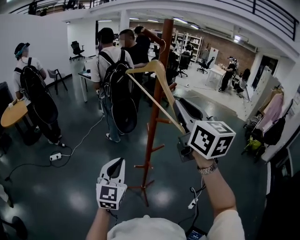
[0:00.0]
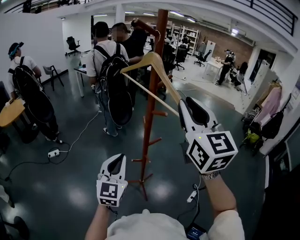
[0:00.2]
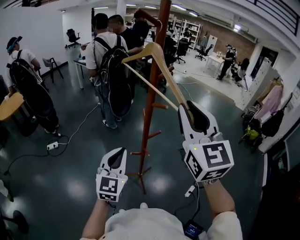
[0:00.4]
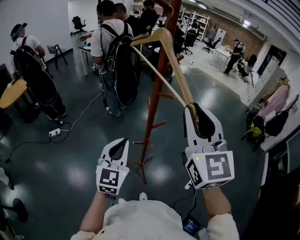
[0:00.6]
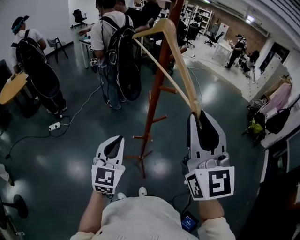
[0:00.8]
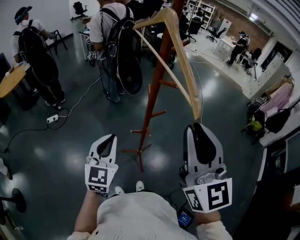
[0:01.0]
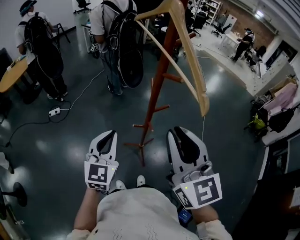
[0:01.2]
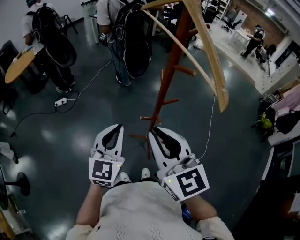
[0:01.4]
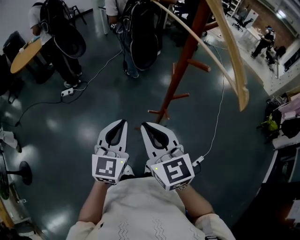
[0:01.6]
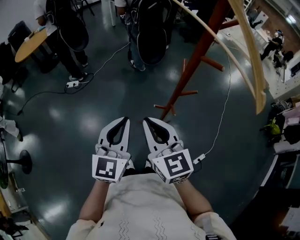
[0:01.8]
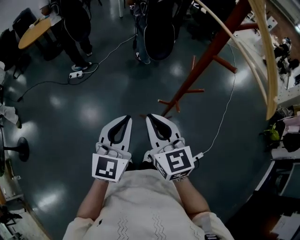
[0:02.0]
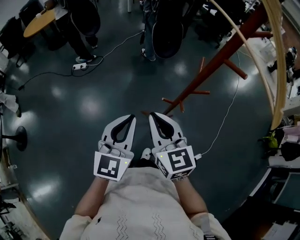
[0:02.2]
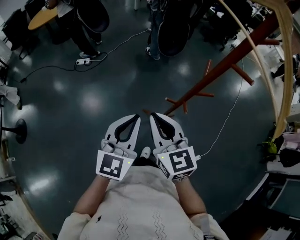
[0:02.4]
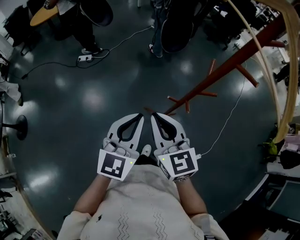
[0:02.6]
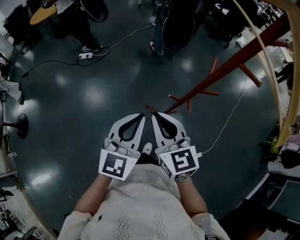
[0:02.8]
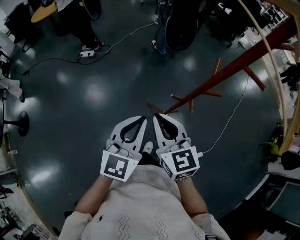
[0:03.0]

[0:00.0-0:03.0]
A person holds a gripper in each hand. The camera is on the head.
0:00.0 to 0:01.6: The right gripper travels downward and to the left by about 30 cm, and changes its angle by about 30 degrees; the left gripper travels downward by about 10 cm.
0:01.6 to 0:03.0: The right gripper is displaced downward by about 10 cm.

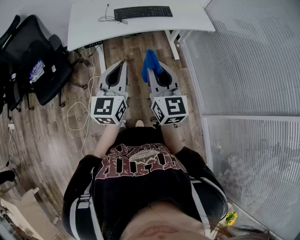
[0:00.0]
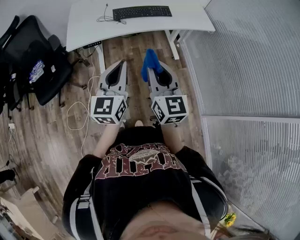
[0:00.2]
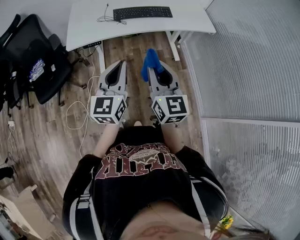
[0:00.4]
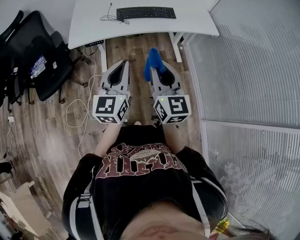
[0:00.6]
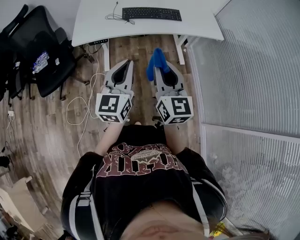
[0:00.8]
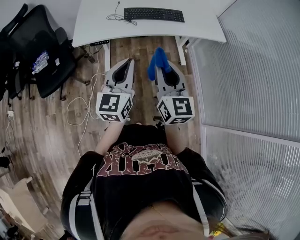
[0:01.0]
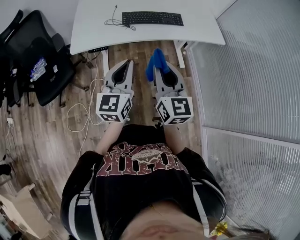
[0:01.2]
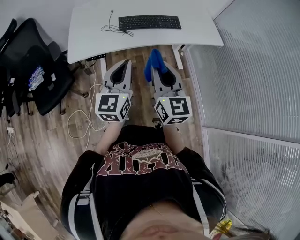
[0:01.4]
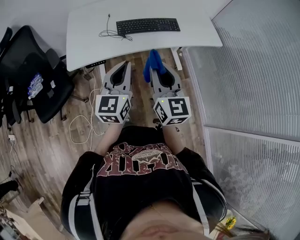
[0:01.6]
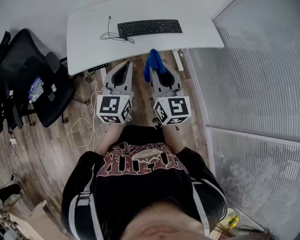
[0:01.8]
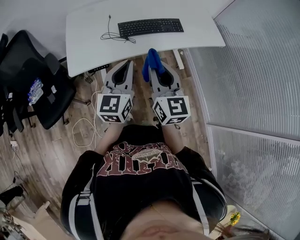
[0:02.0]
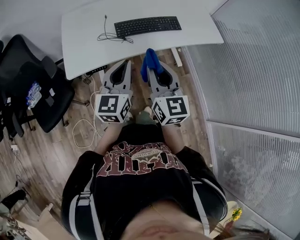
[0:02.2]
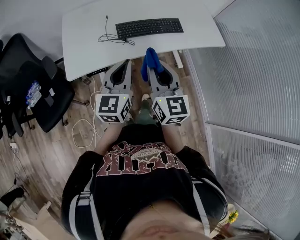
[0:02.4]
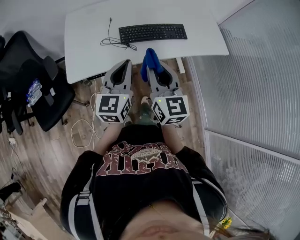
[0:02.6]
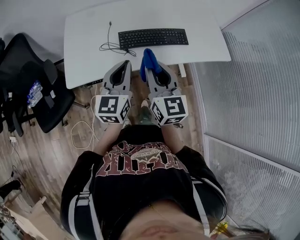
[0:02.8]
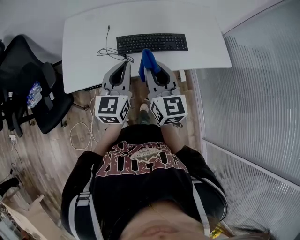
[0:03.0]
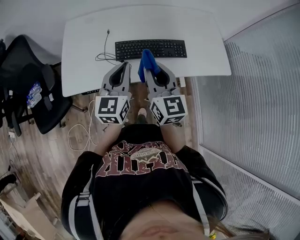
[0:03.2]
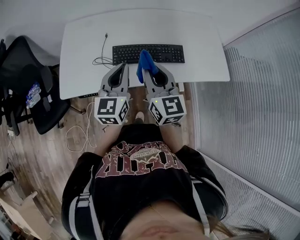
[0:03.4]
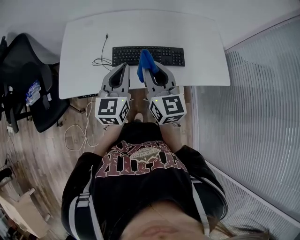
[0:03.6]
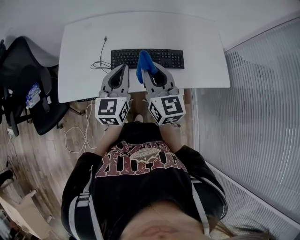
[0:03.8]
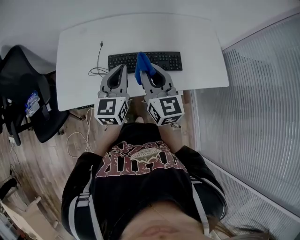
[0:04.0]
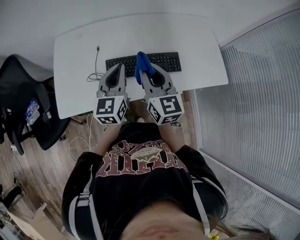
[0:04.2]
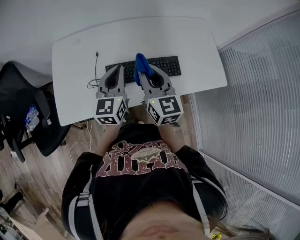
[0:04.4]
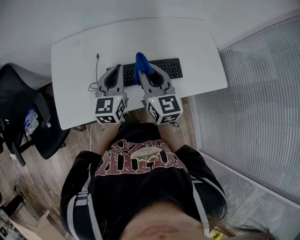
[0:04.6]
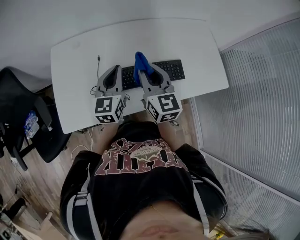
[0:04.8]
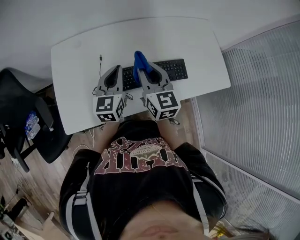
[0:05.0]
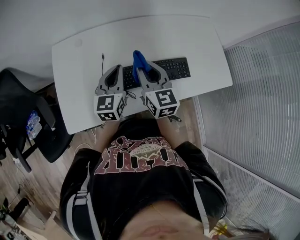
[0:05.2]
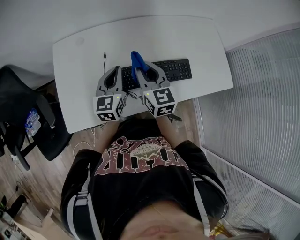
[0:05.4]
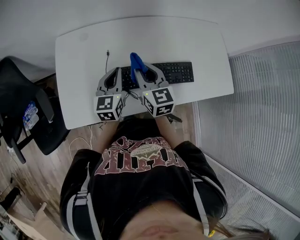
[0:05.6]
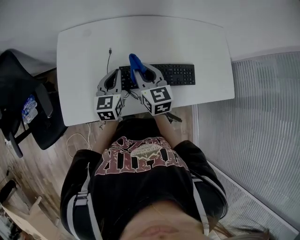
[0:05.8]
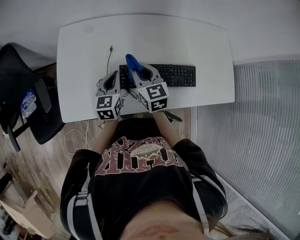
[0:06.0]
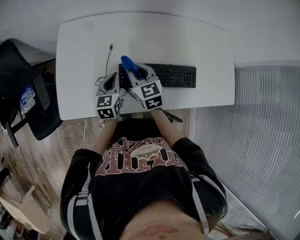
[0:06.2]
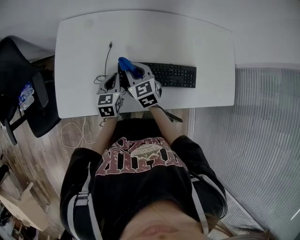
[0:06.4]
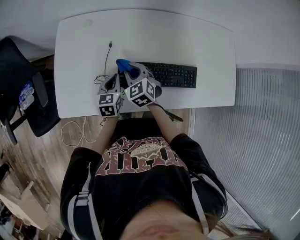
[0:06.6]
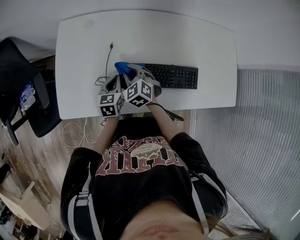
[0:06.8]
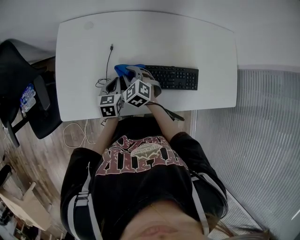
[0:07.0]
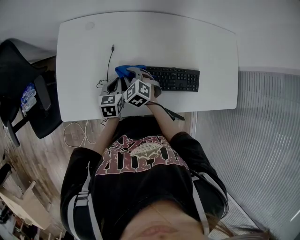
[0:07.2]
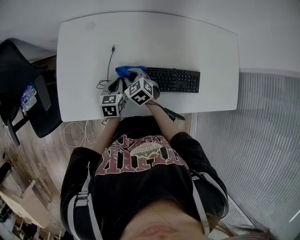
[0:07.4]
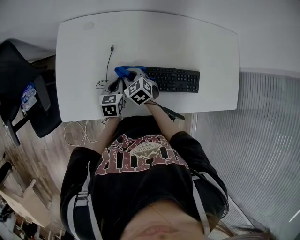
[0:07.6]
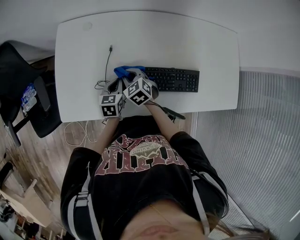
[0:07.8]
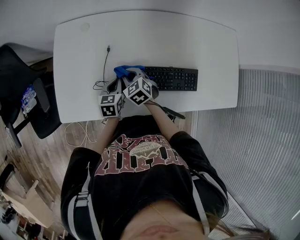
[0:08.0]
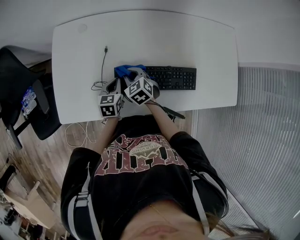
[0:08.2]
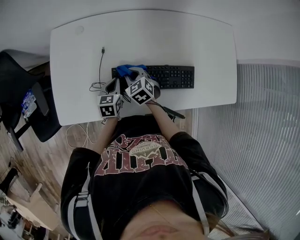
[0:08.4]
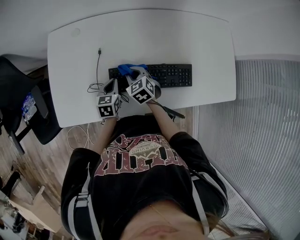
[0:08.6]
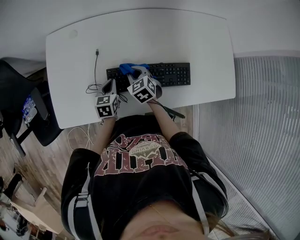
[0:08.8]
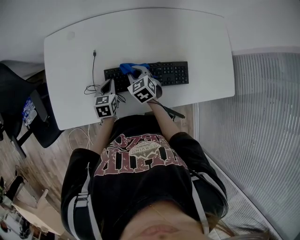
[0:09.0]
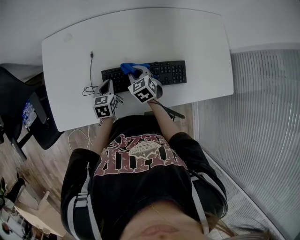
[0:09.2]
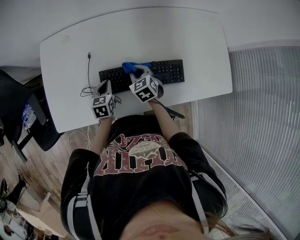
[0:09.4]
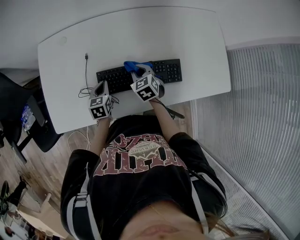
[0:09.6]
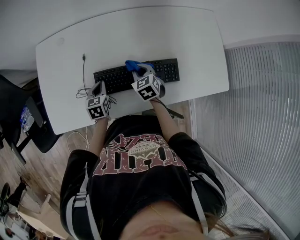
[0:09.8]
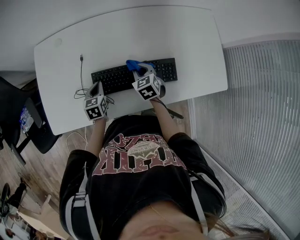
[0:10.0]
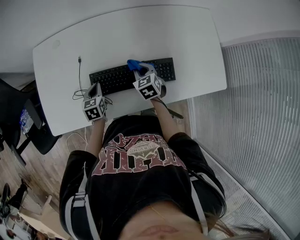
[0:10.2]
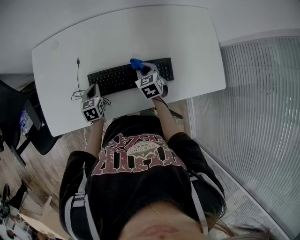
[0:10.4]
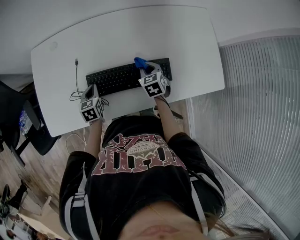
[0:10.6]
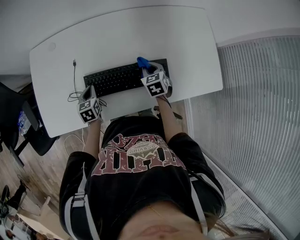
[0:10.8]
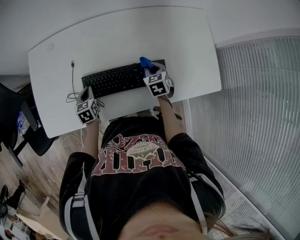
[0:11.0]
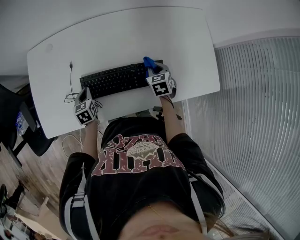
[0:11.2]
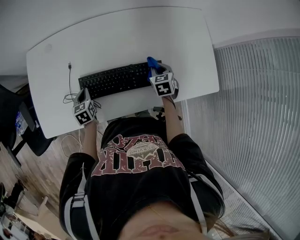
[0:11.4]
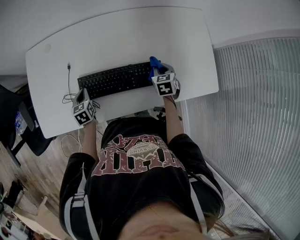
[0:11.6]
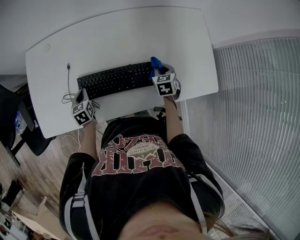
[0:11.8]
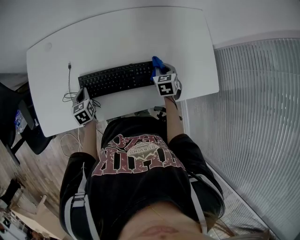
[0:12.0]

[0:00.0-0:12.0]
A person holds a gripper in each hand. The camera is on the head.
0:00.0 to 0:01.6: Both grippers move forward, roughly 15 cm.
0:01.6 to 0:03.0: The grippers both shift forward by some 20 cm.
0:03.0 to 0:04.4: Both grippers travel together forward, approximately 15 cm.
0:04.4 to 0:06.0: Both grippers travel together downward, to the left and forward, about 20 cm. The right gripper changes its angle by roughly 20 degrees.
0:06.0 to 0:07.6: Both grippers travel together downward, some 15 cm. The right gripper turns by some 30 degrees.
0:07.6 to 0:09.0: The right gripper moves to the right, about 10 cm.
0:09.0 to 0:10.4: The right gripper travels to the right by some 15 cm.
0:10.4 to 0:12.0: The right gripper heads to the right, covering roughly 15 cm.

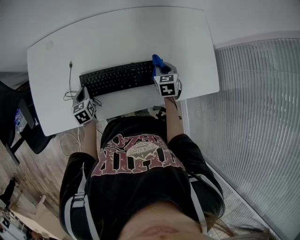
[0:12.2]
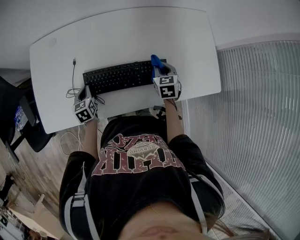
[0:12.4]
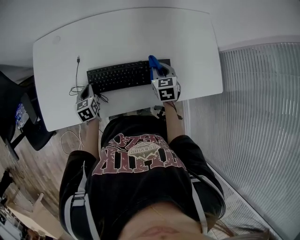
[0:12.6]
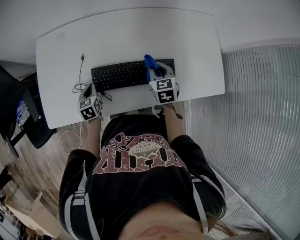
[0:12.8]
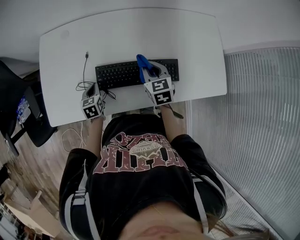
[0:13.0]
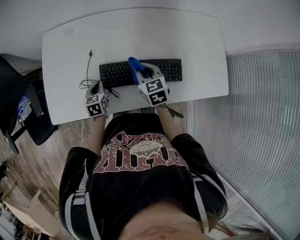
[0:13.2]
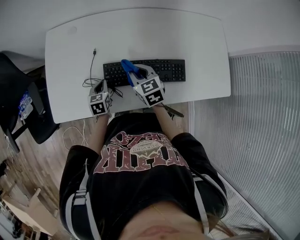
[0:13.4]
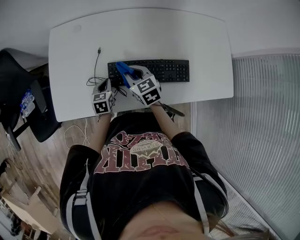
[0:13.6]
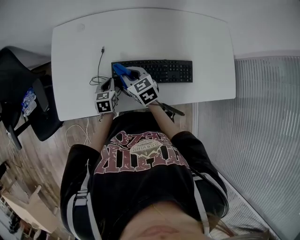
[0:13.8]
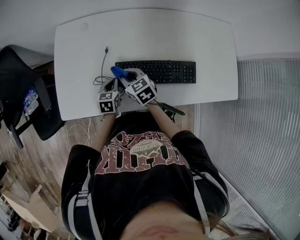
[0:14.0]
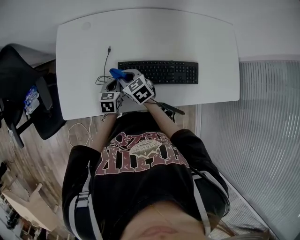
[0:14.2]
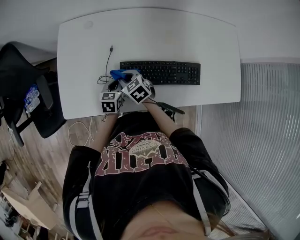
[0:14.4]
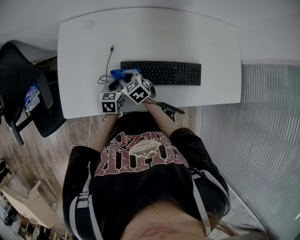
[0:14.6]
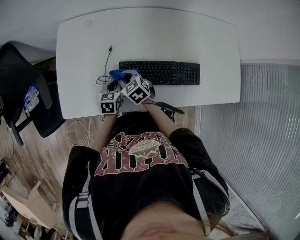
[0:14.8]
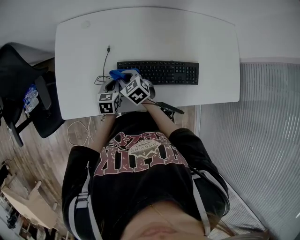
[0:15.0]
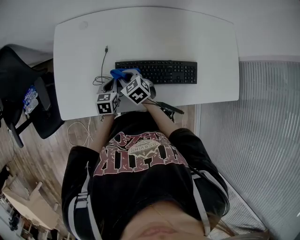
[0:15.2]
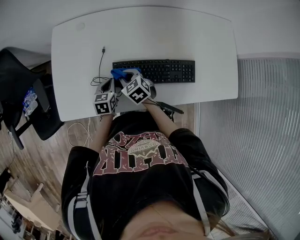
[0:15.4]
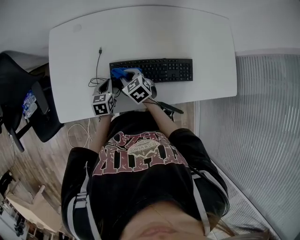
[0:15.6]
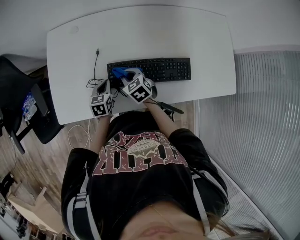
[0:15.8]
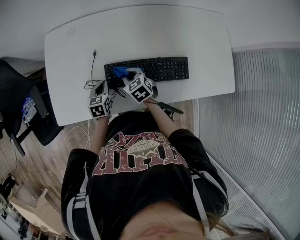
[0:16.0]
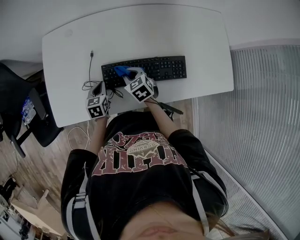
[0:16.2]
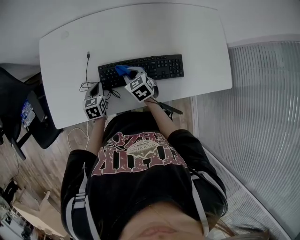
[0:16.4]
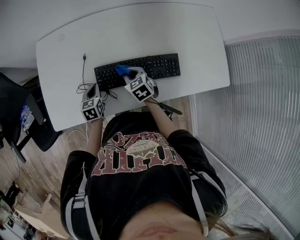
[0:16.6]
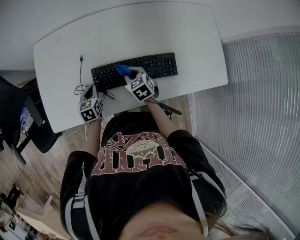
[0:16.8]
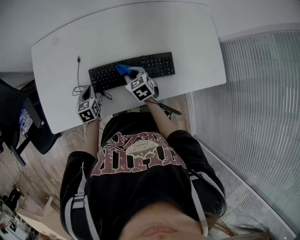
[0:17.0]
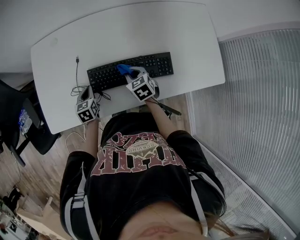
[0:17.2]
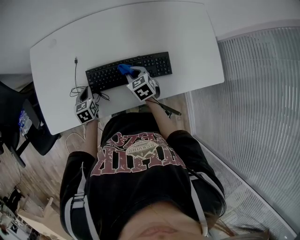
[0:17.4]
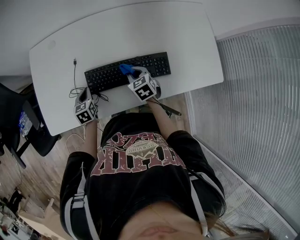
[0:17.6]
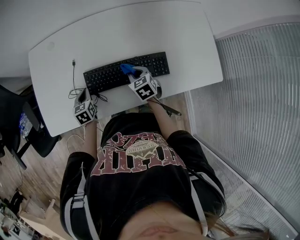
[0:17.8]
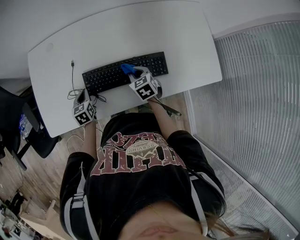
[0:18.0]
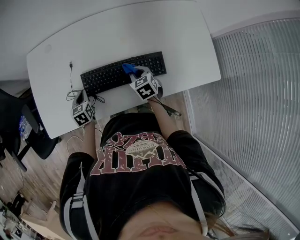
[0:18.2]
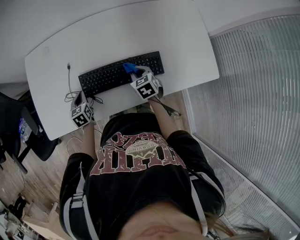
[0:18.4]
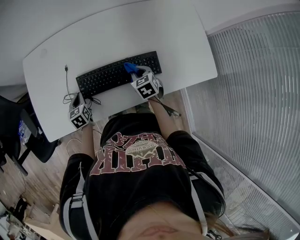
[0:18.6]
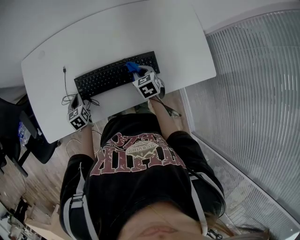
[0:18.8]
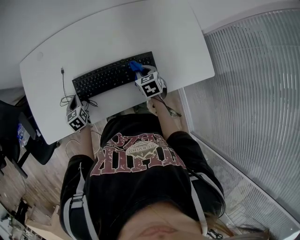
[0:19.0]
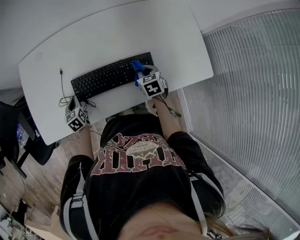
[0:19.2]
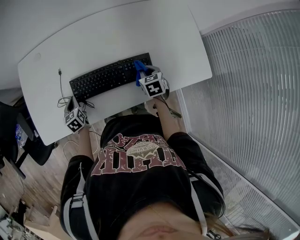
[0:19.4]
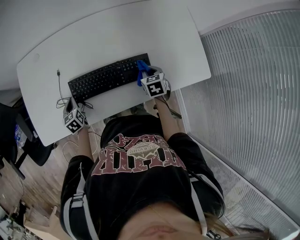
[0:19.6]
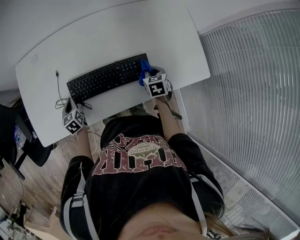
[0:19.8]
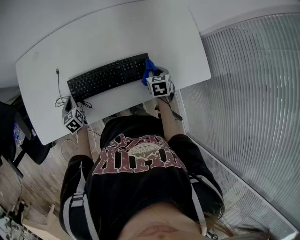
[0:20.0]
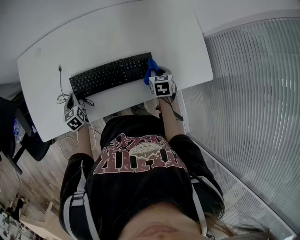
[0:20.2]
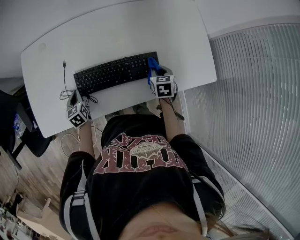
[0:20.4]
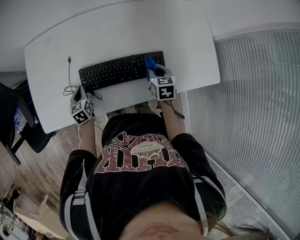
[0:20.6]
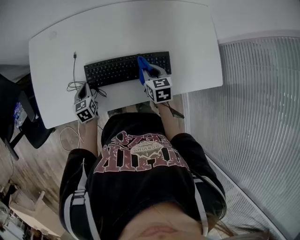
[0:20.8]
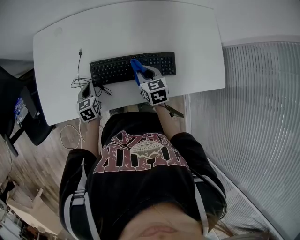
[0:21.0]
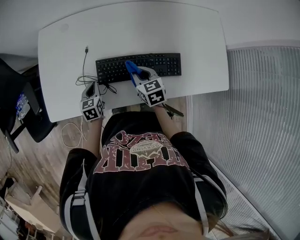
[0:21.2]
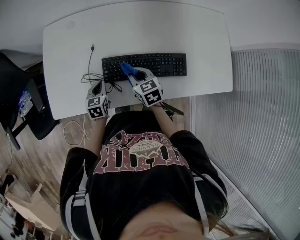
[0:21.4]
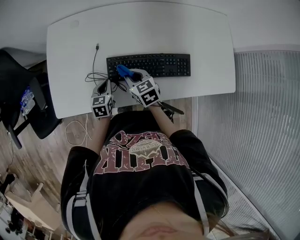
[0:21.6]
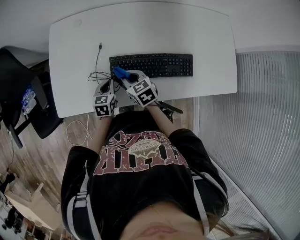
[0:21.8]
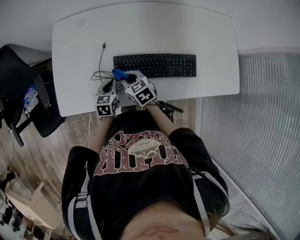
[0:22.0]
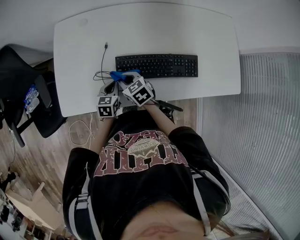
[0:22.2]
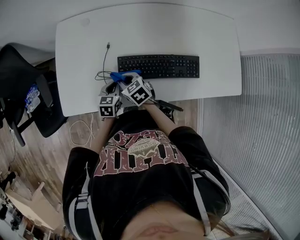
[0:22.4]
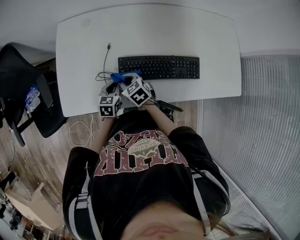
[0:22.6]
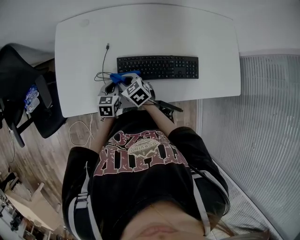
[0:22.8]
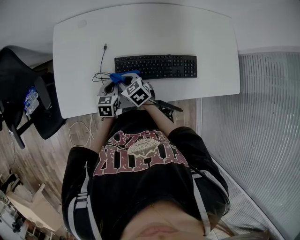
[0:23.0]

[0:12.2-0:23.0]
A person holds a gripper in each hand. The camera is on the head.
0:12.2 to 0:13.8: The right gripper travels to the left by approximately 35 cm, and turns by approximately 40 degrees.
0:13.8 to 0:15.2: The right gripper goes about 5 cm downward.
0:15.2 to 0:16.8: The right gripper moves to the right, about 15 cm.
0:16.8 to 0:18.4: The right gripper moves to the right, about 10 cm.
0:18.4 to 0:20.0: The right gripper is displaced to the right by approximately 15 cm, and turns by roughly 20 degrees.
0:20.0 to 0:21.4: The right gripper goes roughly 30 cm to the left, and changes its angle by approximately 30 degrees.
0:21.4 to 0:23.0: The right gripper goes roughly 10 cm to the left.
